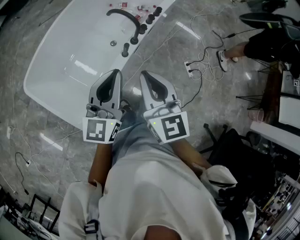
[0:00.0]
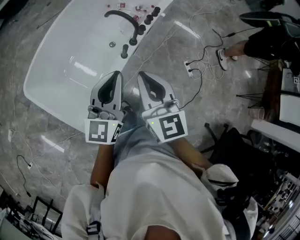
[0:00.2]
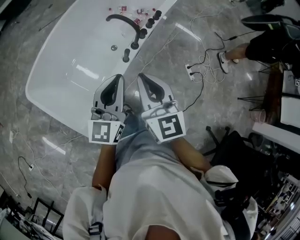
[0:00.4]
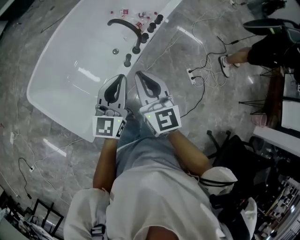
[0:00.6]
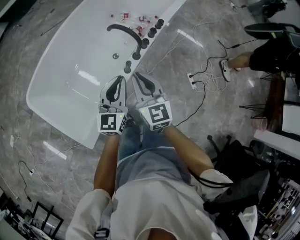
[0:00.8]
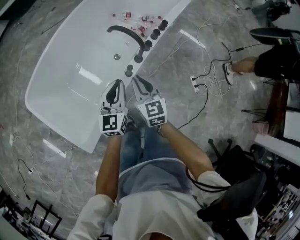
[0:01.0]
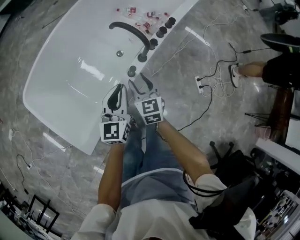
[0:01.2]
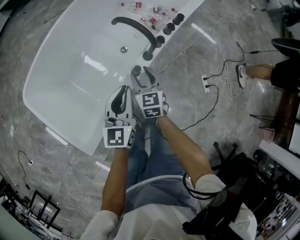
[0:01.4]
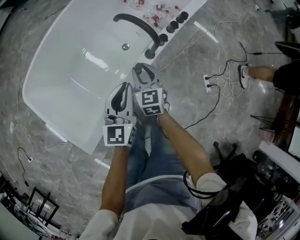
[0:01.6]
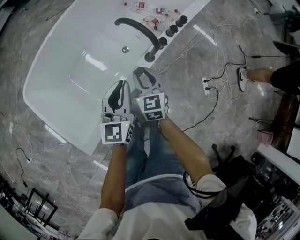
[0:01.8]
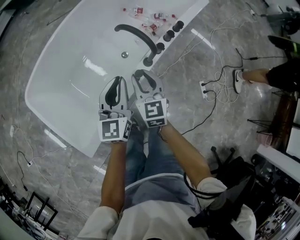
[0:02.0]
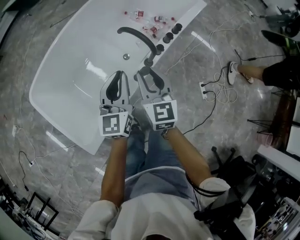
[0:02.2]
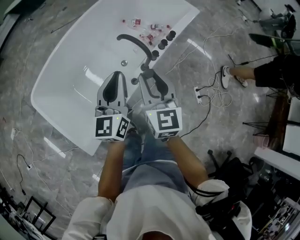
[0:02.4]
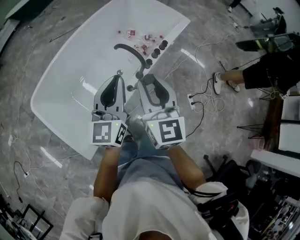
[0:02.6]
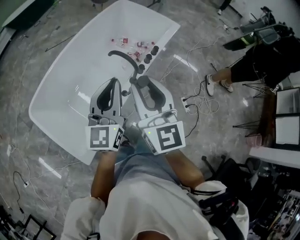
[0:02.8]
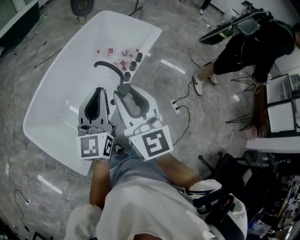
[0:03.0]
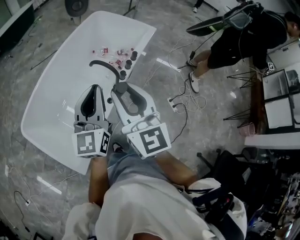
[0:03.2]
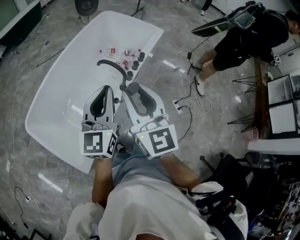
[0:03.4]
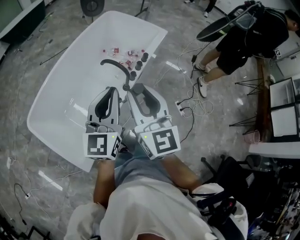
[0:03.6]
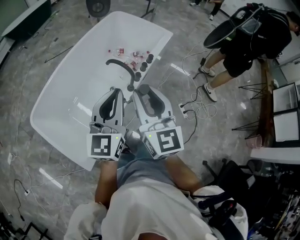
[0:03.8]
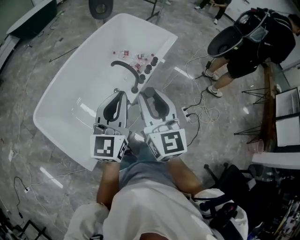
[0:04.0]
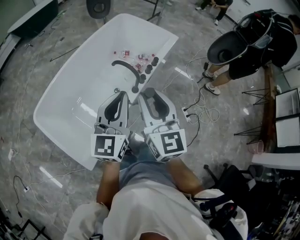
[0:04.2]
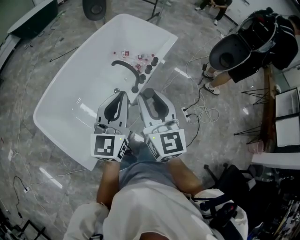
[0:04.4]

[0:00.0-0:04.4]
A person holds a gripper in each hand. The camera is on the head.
0:00.0 to 0:01.4: Both grippers move downward and forward, approximately 50 cm. The right gripper opens.
0:01.4 to 0:03.0: The right gripper shifts roughly 60 cm upward and backward, and angles its fingers upward, by approximately 30 degrees. Meanwhile the left gripper goes some 40 cm upward.
0:03.0 to 0:04.4: The left gripper heads backward, covering some 5 cm.
